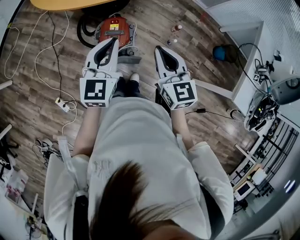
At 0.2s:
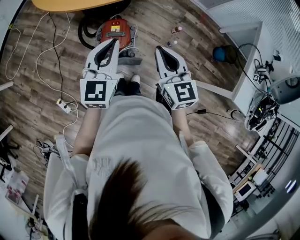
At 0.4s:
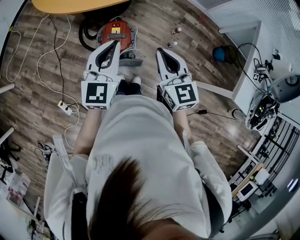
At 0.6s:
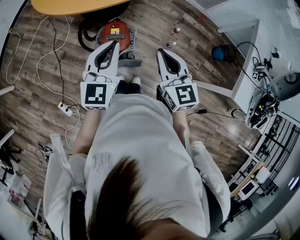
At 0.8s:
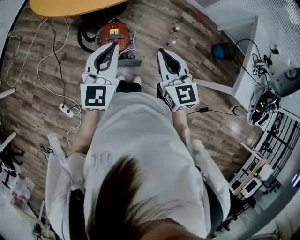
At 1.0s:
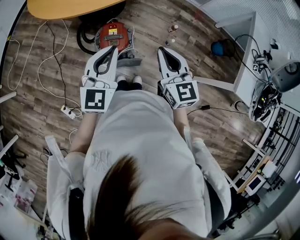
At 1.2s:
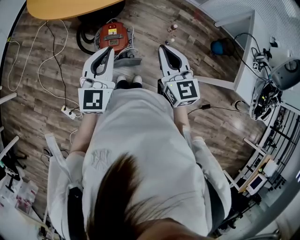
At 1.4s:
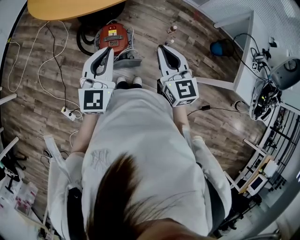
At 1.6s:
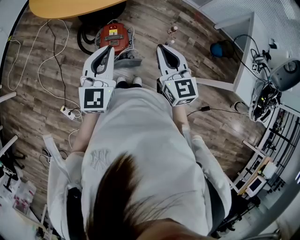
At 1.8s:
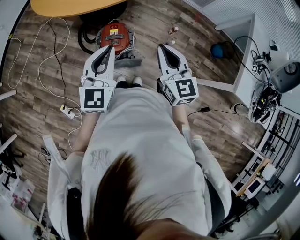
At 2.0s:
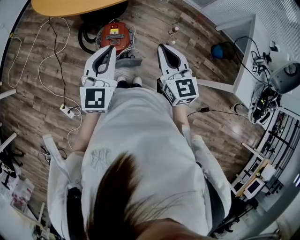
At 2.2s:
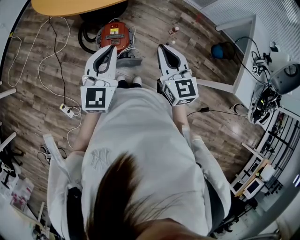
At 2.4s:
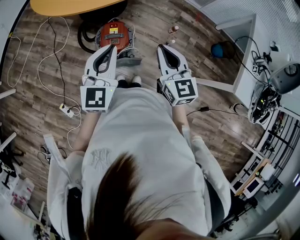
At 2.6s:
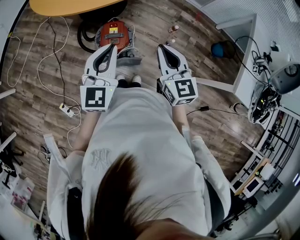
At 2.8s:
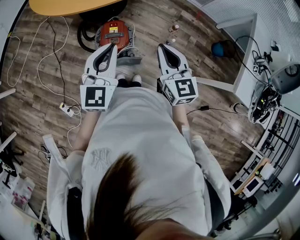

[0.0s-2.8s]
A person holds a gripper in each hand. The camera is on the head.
0.0s to 1.4s: The left gripper ends up some 5 cm from where it was.
1.4s to 2.8s: Both grippers stay about where they are.

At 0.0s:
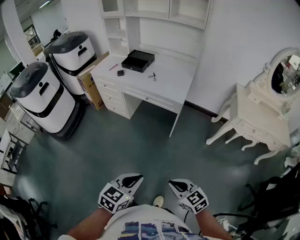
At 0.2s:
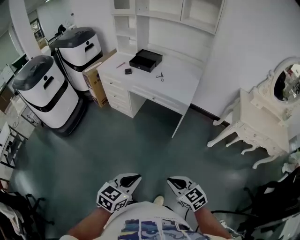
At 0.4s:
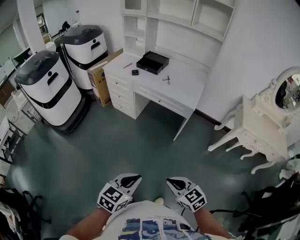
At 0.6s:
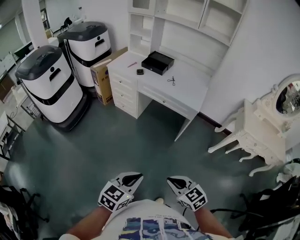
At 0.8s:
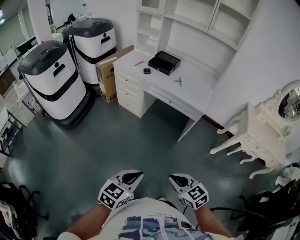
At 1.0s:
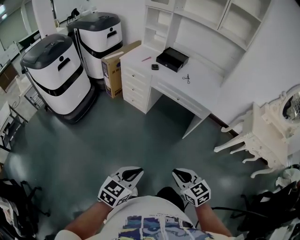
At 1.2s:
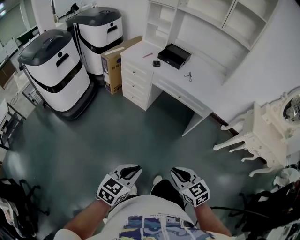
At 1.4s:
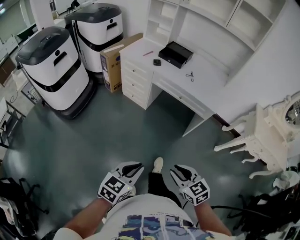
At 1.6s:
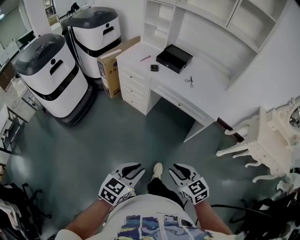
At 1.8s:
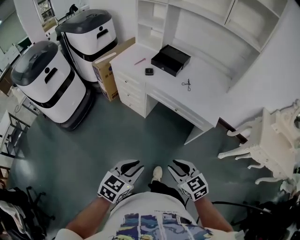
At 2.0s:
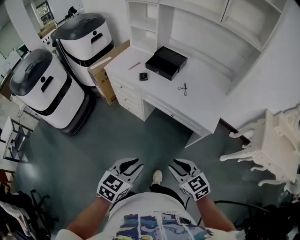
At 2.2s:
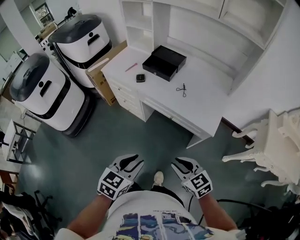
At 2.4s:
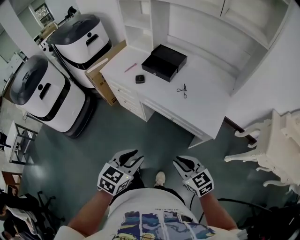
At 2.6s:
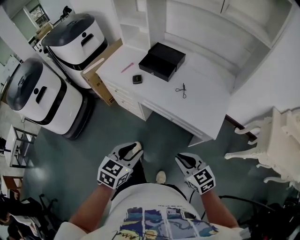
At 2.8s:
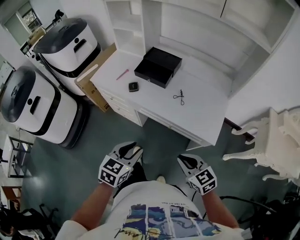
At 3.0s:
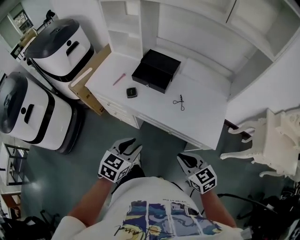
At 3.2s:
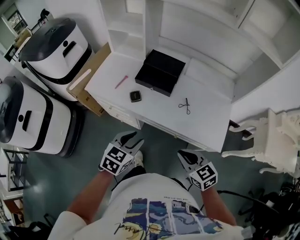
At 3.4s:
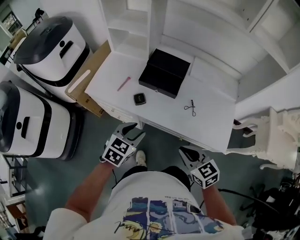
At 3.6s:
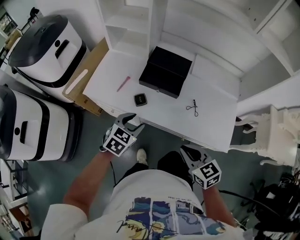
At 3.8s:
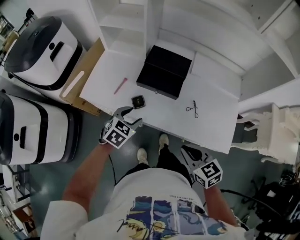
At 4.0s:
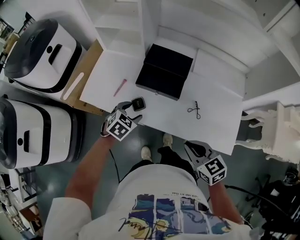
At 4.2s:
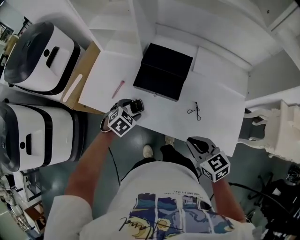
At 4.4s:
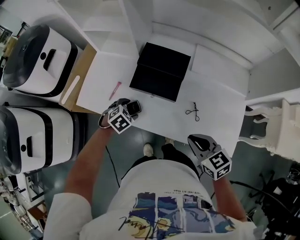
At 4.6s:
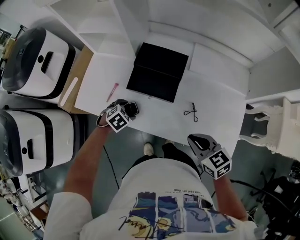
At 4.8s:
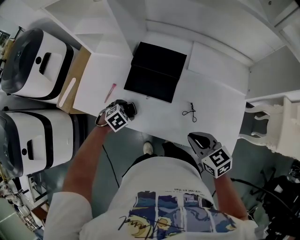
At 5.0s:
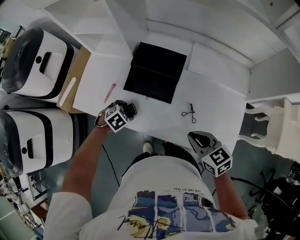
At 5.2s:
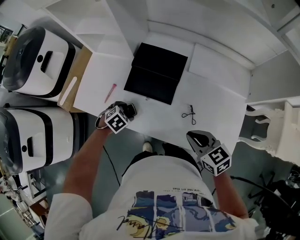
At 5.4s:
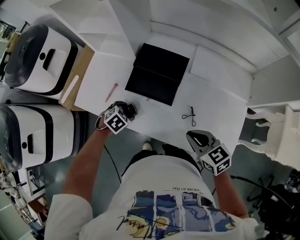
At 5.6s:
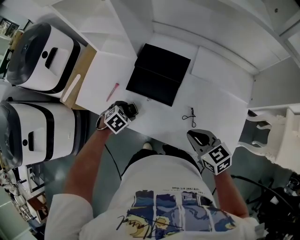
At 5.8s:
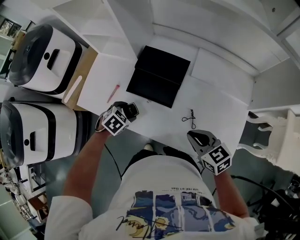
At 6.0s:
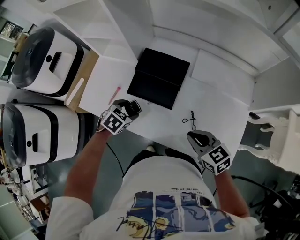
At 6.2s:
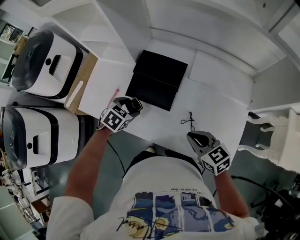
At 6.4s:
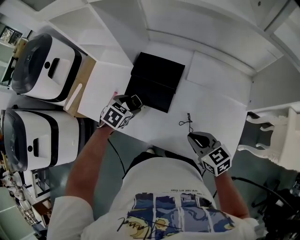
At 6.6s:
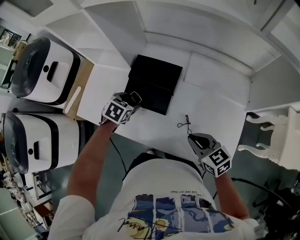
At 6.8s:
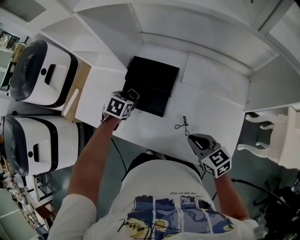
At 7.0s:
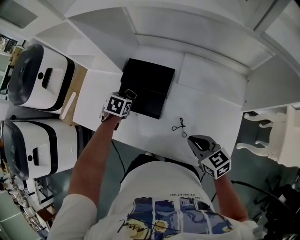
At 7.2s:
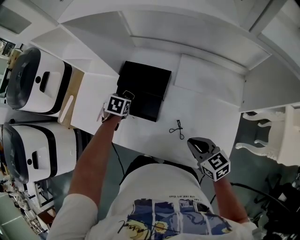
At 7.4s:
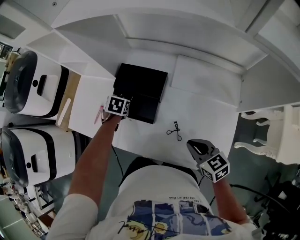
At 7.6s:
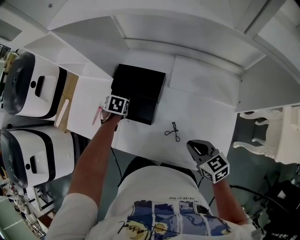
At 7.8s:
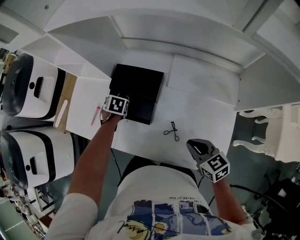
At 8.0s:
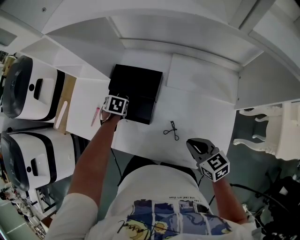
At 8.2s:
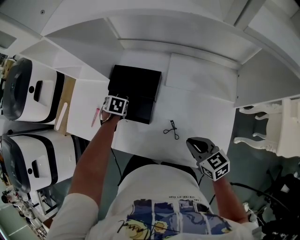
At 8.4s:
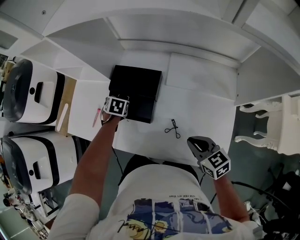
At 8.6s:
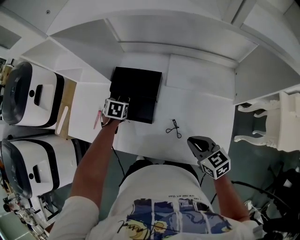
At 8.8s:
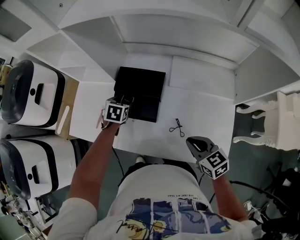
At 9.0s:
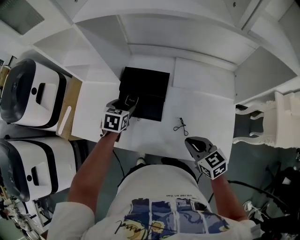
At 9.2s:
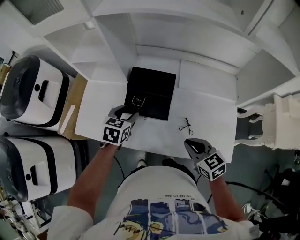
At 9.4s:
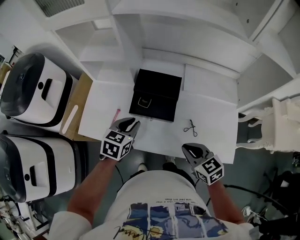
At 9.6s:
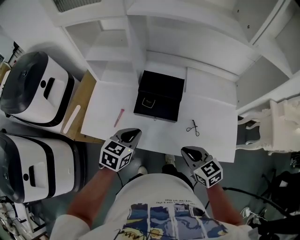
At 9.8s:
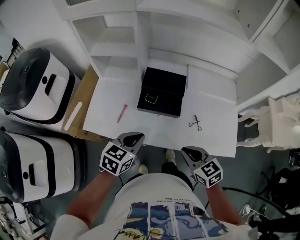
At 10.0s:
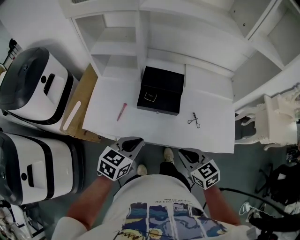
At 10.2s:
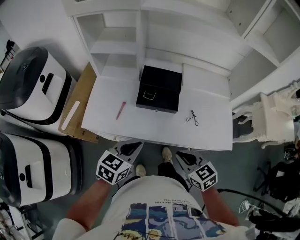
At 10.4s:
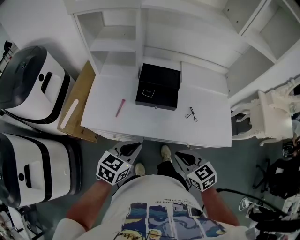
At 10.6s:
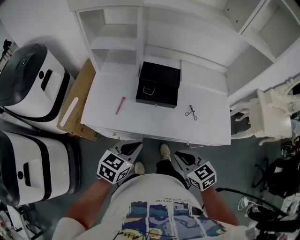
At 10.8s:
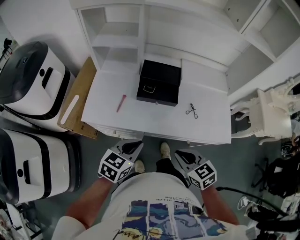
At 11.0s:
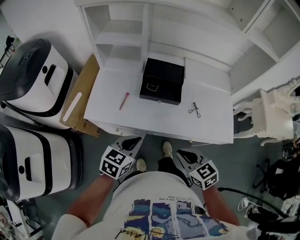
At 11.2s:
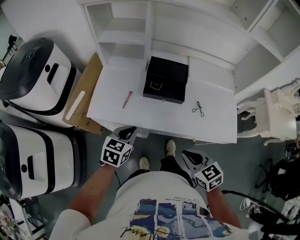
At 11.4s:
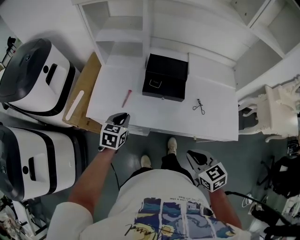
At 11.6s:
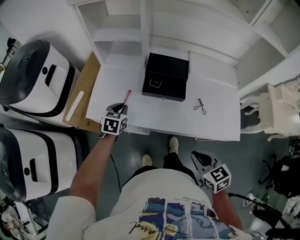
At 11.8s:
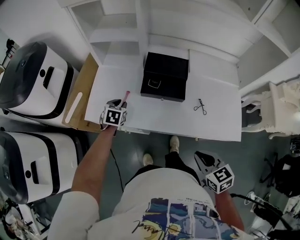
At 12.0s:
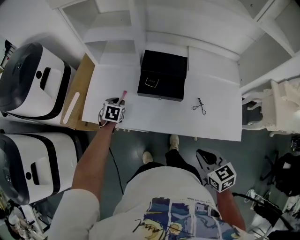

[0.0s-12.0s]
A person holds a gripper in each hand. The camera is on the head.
0.0s to 1.6s: The grippers both shift to the left and forward by some 25 cm.
1.6s to 3.0s: The grippers both shift forward by roughly 35 cm.
3.0s to 4.4s: The left gripper travels forward and downward by some 35 cm, tilts its fingers some 30 degrees downward, and opens; the right gripper shifts approximately 20 cm forward.
4.4s to 6.0s: The left gripper ends up some 5 cm from where it was. Meanwhile the right gripper shifts by approximately 5 cm.
6.0s to 7.6s: The right gripper shifts about 10 cm to the right. Meanwhile the left gripper is displaced forward by about 15 cm, and rotates some 20 degrees.
7.6s to 9.0s: The left gripper moves upward, roughly 10 cm, and rotates some 20 degrees. Meanwhile the right gripper changes place by some 5 cm.
9.0s to 10.4s: The left gripper is displaced backward by approximately 25 cm, changes its angle by about 30 degrees, and closes up. The right gripper moves to the left and backward, approximately 20 cm.
10.4s to 12.0s: The left gripper moves forward, downward and to the left, roughly 30 cm, and swivels approximately 40 degrees, while the right gripper moves to the right, some 10 cm.

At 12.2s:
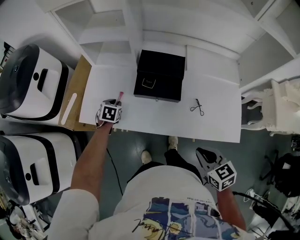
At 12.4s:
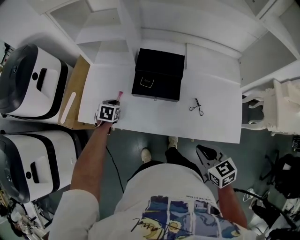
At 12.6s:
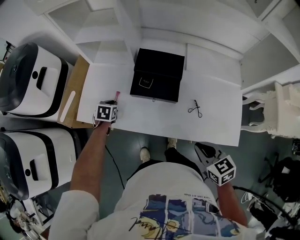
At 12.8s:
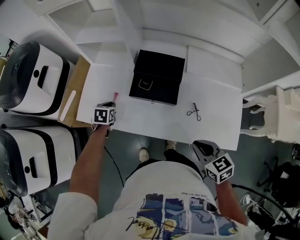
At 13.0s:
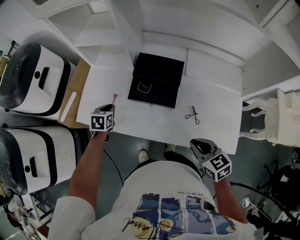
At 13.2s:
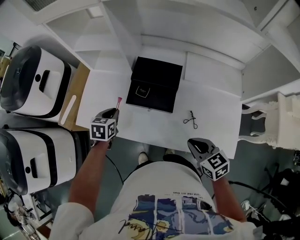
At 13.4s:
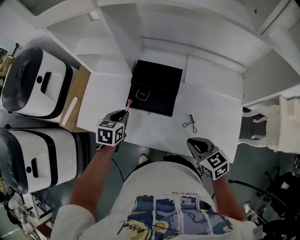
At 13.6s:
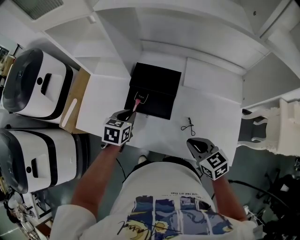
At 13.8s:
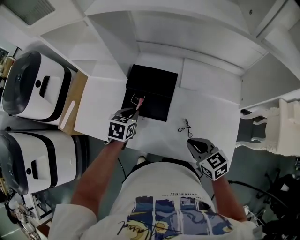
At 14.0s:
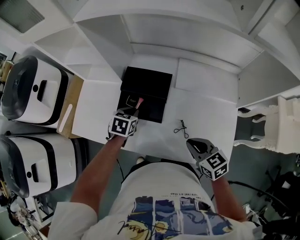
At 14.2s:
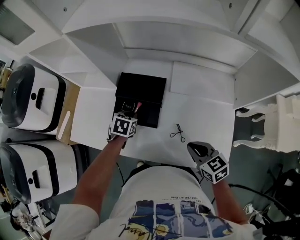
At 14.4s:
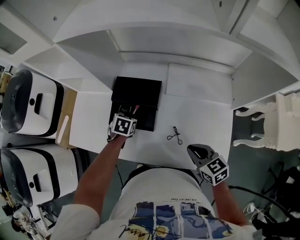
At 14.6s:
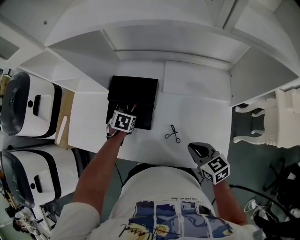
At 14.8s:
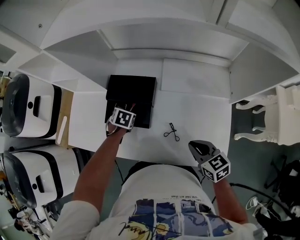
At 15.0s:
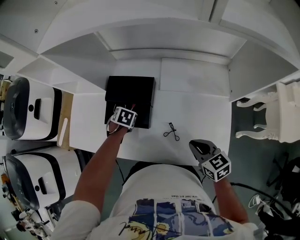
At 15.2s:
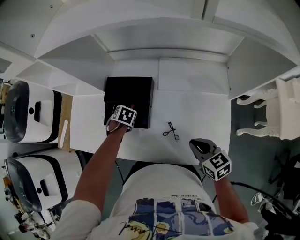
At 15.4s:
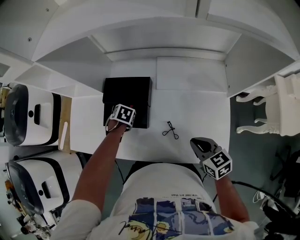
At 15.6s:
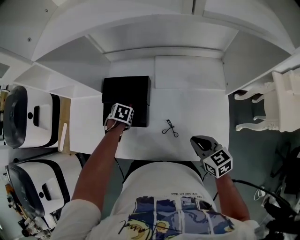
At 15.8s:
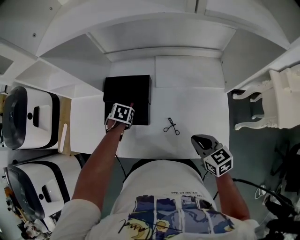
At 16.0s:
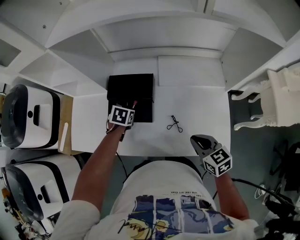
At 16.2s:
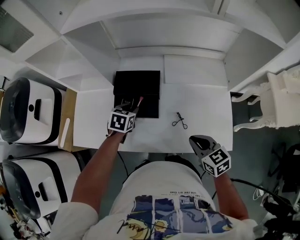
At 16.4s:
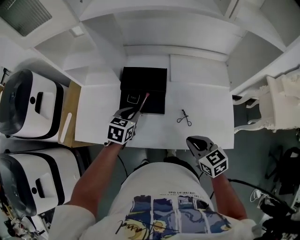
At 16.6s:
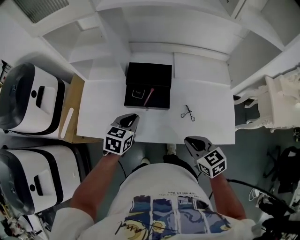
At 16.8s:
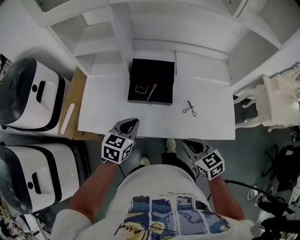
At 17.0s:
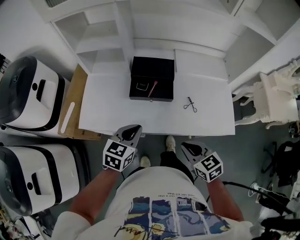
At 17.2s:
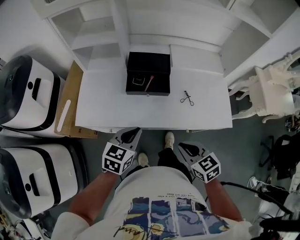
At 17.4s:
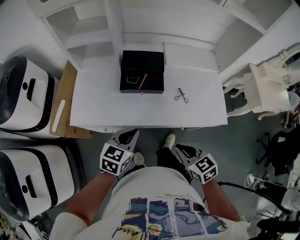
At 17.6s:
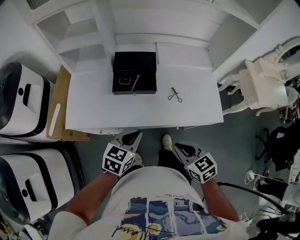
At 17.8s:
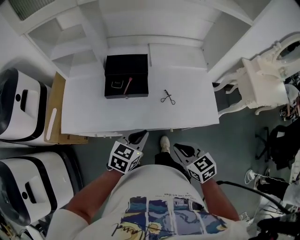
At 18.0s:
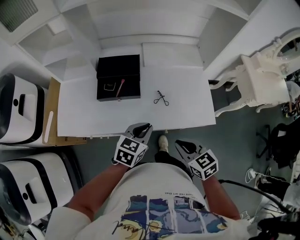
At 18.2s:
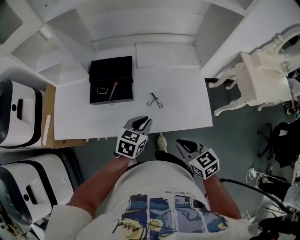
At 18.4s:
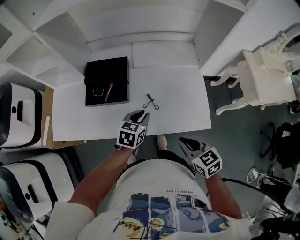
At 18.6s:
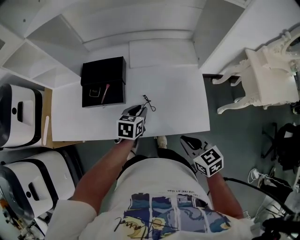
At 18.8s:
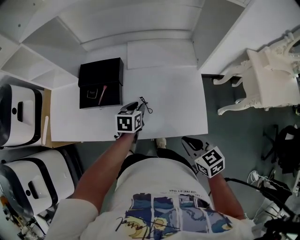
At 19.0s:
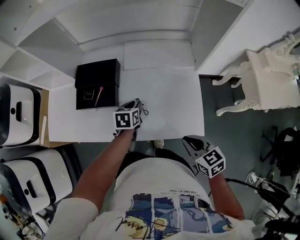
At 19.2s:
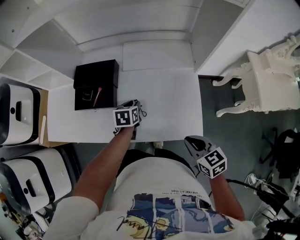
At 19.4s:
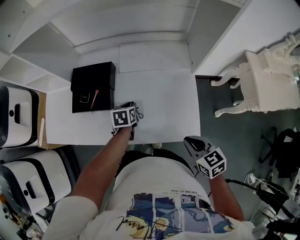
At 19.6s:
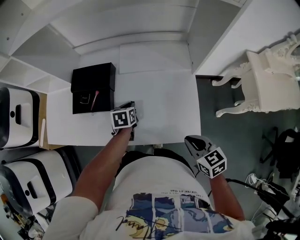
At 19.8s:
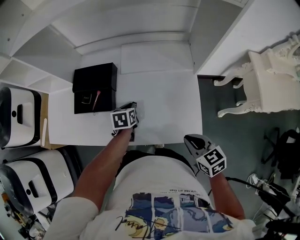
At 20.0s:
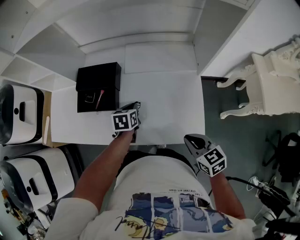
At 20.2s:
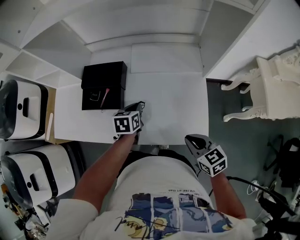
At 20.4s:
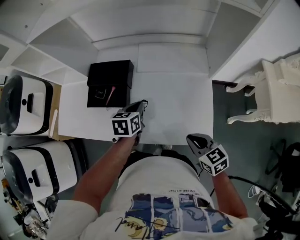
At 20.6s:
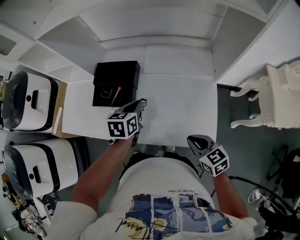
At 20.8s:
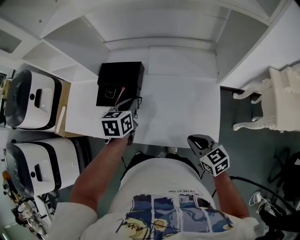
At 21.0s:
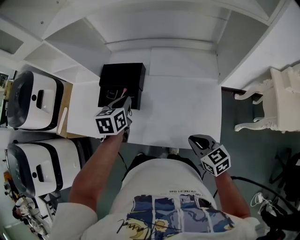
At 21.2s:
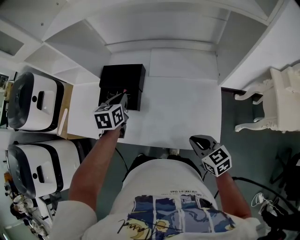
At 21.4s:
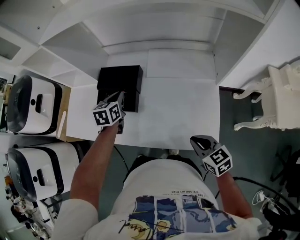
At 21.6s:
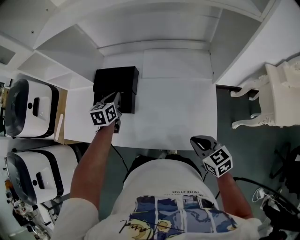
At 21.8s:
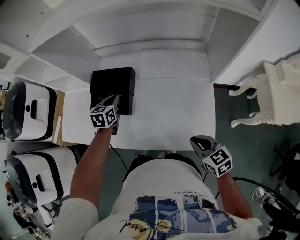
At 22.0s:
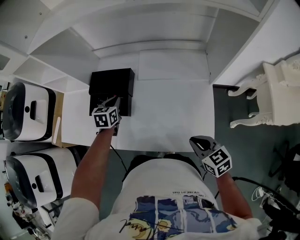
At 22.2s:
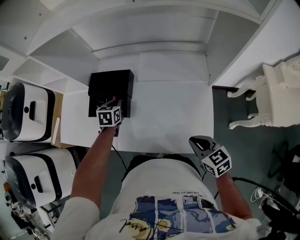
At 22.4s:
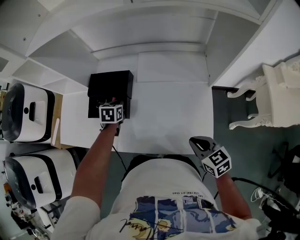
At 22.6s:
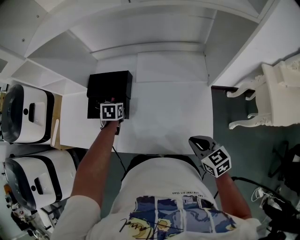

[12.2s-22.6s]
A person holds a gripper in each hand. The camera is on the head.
12.2s to 13.6s: The right gripper travels forward and to the right by approximately 15 cm. The left gripper goes roughly 20 cm to the right and upward.
13.6s to 15.2s: The right gripper changes place by about 10 cm. The left gripper shifts approximately 10 cm downward, and points its fingers roughly 30 degrees further downward.
15.2s to 16.6s: The left gripper shifts roughly 15 cm upward, and tips its fingers upward by some 40 degrees, while the right gripper shifts by roughly 15 cm.
16.6s to 18.2s: The right gripper is displaced to the right and backward by approximately 15 cm. The left gripper is displaced to the right by some 20 cm.
18.2s to 19.6s: The left gripper heads forward and downward, covering some 20 cm, and turns by approximately 30 degrees. Meanwhile the right gripper goes some 15 cm to the right.
19.6s to 21.2s: The right gripper moves to the left, about 5 cm. The left gripper goes some 20 cm upward, to the left and forward.
21.2s to 22.6s: The left gripper goes roughly 15 cm downward.
